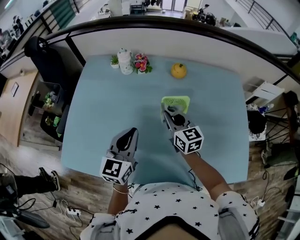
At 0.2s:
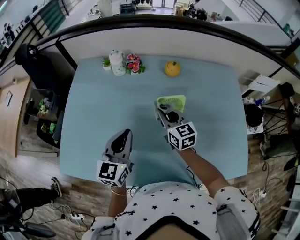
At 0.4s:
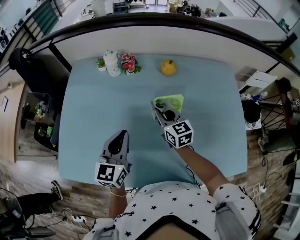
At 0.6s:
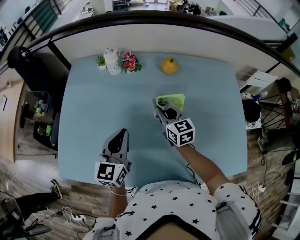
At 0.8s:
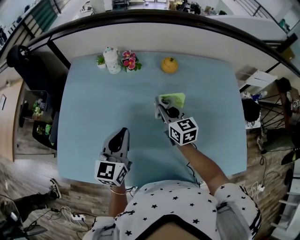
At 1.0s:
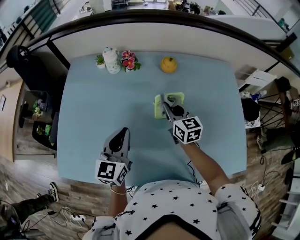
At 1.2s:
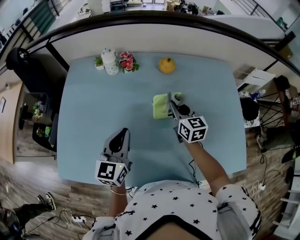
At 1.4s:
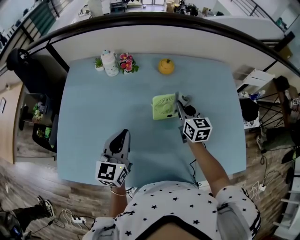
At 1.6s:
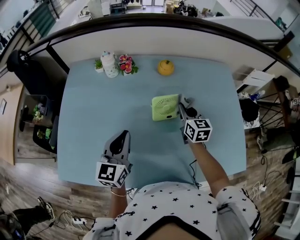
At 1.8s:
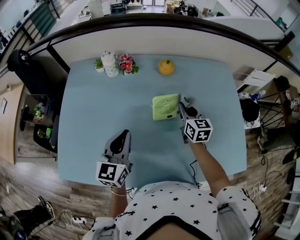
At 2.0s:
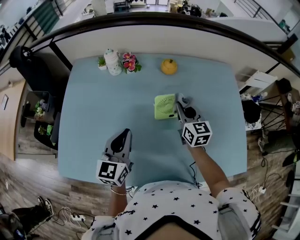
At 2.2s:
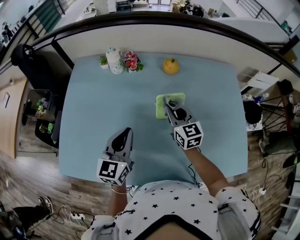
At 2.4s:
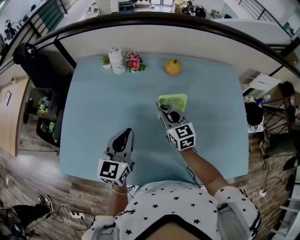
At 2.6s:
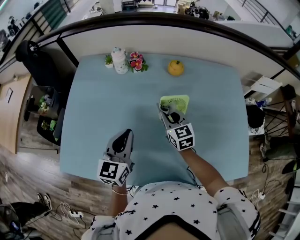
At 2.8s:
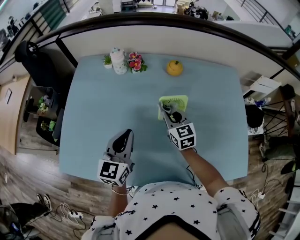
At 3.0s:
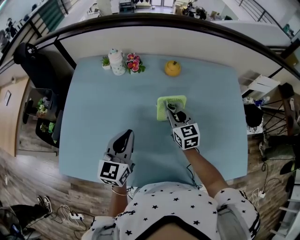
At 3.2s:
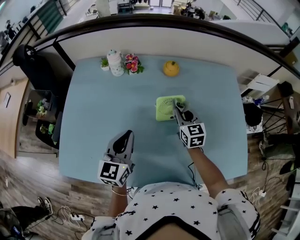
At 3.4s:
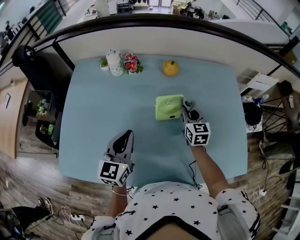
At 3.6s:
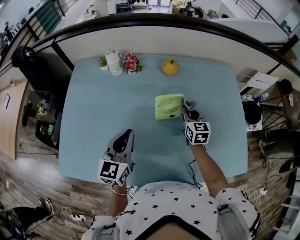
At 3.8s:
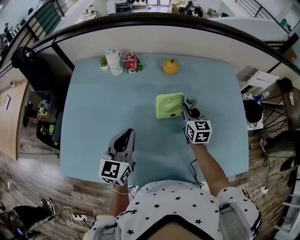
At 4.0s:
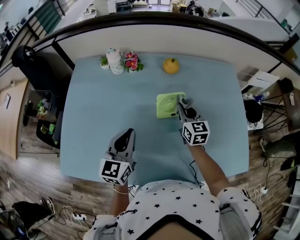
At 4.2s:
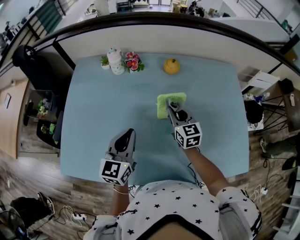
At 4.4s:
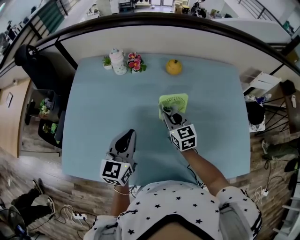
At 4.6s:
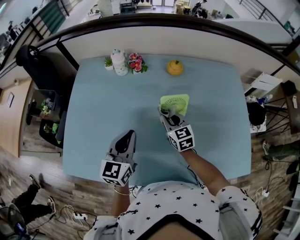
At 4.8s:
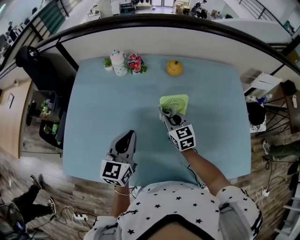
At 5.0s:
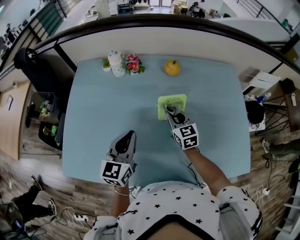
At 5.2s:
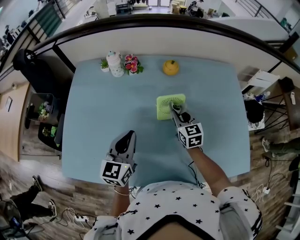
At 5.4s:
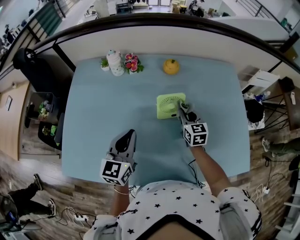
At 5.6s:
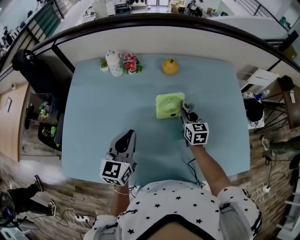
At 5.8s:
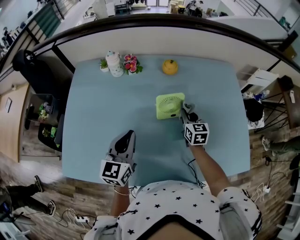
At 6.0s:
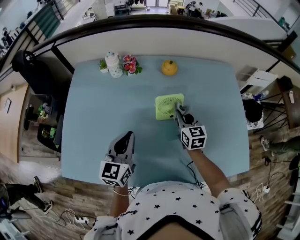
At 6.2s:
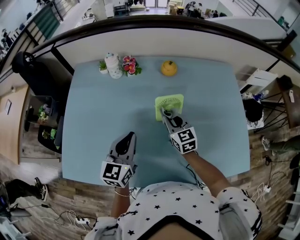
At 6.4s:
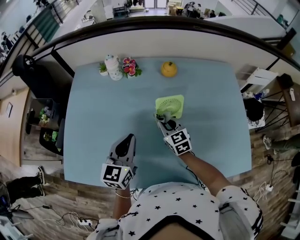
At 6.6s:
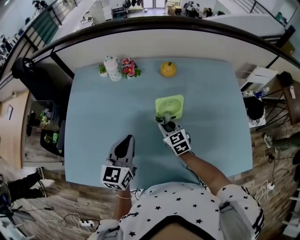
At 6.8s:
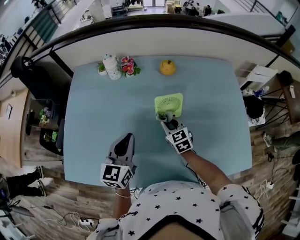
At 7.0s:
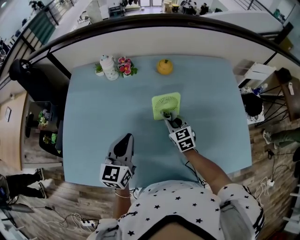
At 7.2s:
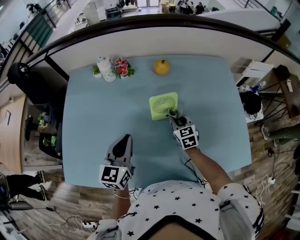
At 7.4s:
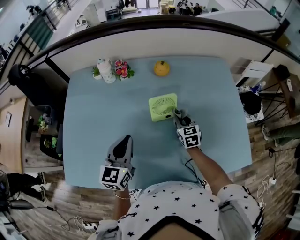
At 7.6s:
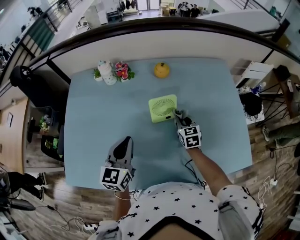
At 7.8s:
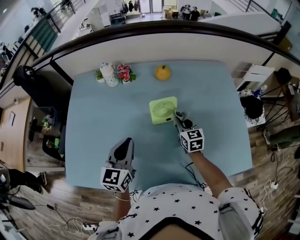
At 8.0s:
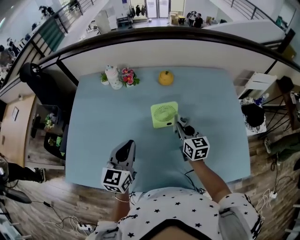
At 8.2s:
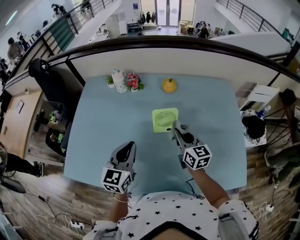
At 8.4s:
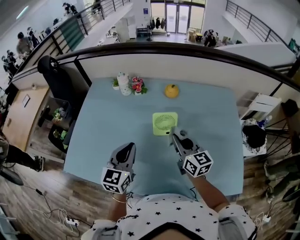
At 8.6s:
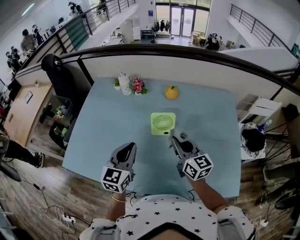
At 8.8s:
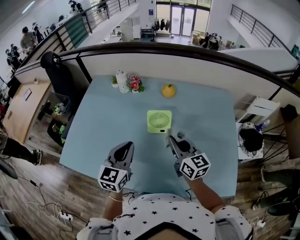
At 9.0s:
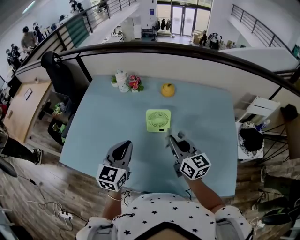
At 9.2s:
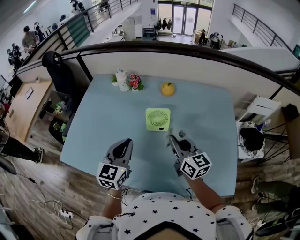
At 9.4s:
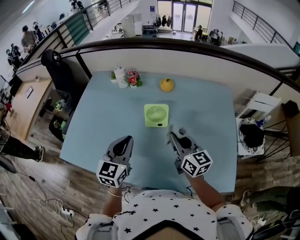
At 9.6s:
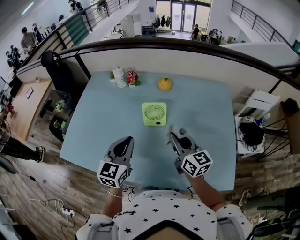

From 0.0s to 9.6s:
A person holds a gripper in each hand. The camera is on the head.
From 0.0s to 1.6s: The right gripper moves to the right, roughly 10 cm, and turns by about 20 degrees.
From 1.6s to 3.2s: The right gripper goes to the left and returns, roughly 15 cm each way.
From 3.2s to 4.8s: The right gripper heads to the left, covering about 5 cm.
From 4.8s to 6.4s: The right gripper travels to the right and back again, some 10 cm each way.
From 6.4s to 8.0s: The right gripper travels to the right by about 10 cm, and changes its angle by approximately 20 degrees.
From 8.0s to 9.6s: The left gripper moves to the right and backward, roughly 10 cm. The right gripper goes some 15 cm upward and backward, and rotates some 20 degrees.

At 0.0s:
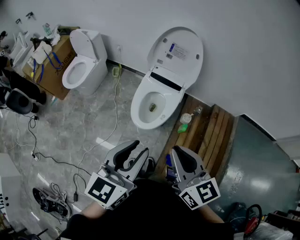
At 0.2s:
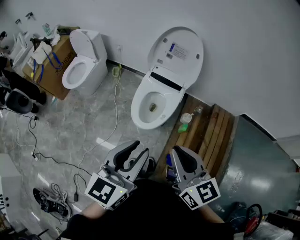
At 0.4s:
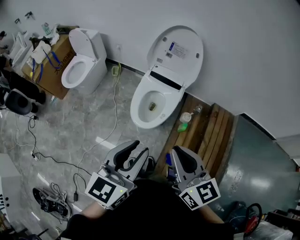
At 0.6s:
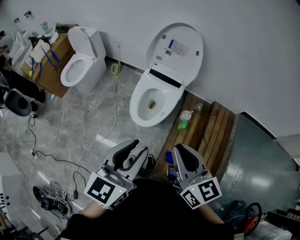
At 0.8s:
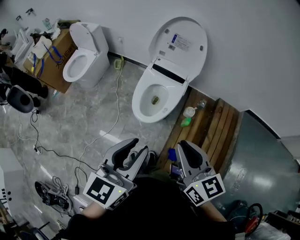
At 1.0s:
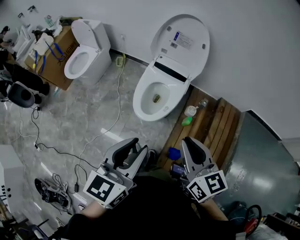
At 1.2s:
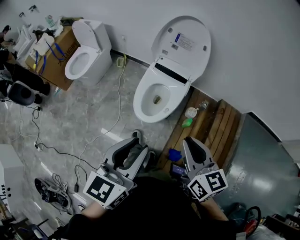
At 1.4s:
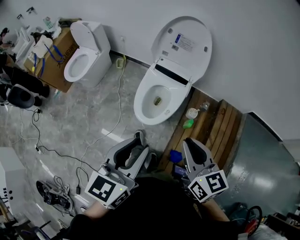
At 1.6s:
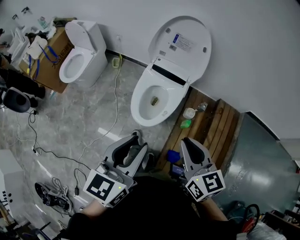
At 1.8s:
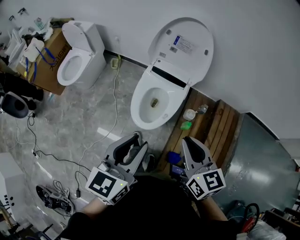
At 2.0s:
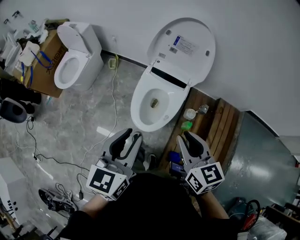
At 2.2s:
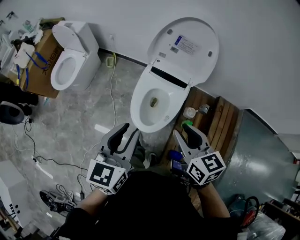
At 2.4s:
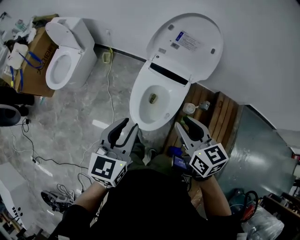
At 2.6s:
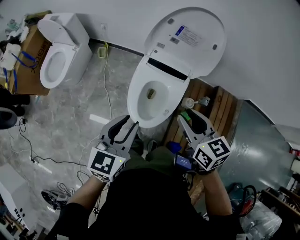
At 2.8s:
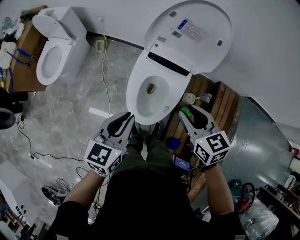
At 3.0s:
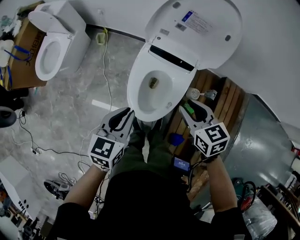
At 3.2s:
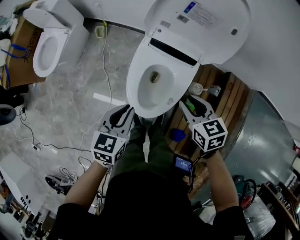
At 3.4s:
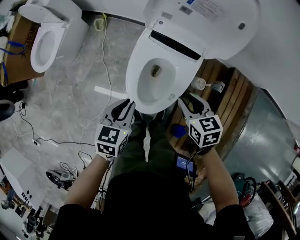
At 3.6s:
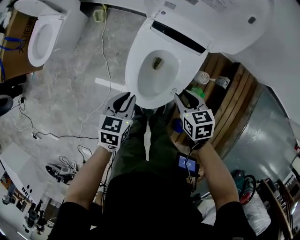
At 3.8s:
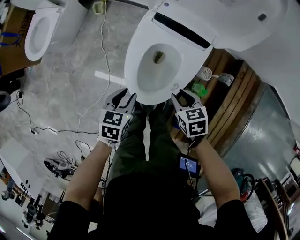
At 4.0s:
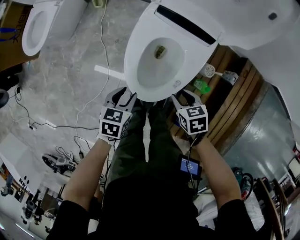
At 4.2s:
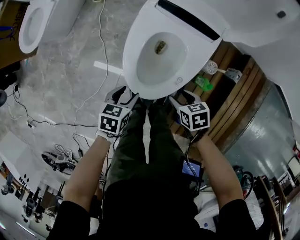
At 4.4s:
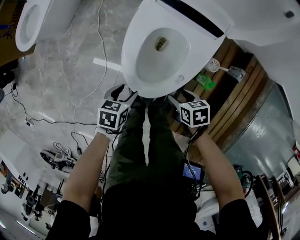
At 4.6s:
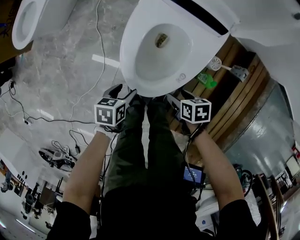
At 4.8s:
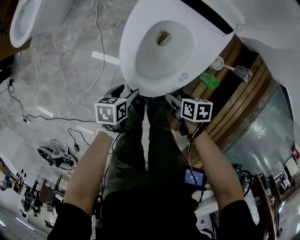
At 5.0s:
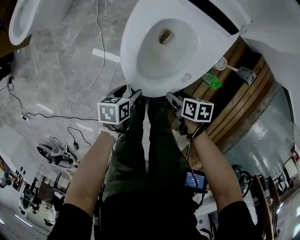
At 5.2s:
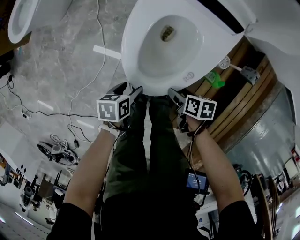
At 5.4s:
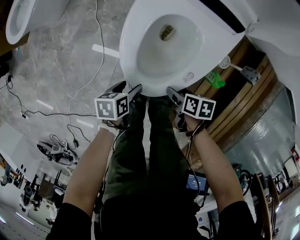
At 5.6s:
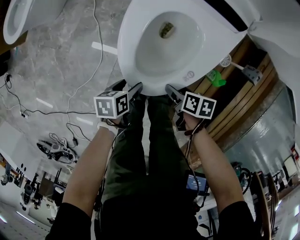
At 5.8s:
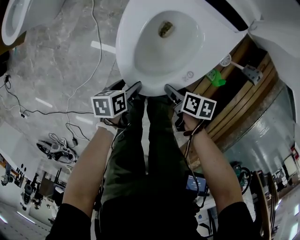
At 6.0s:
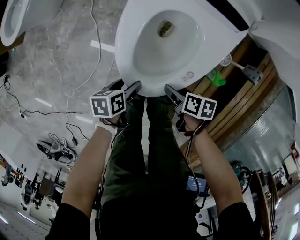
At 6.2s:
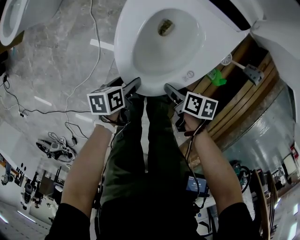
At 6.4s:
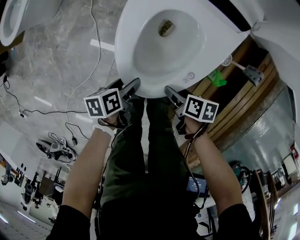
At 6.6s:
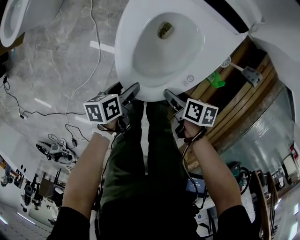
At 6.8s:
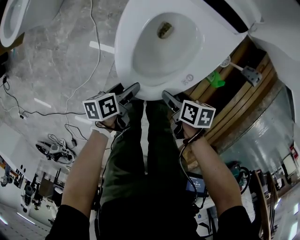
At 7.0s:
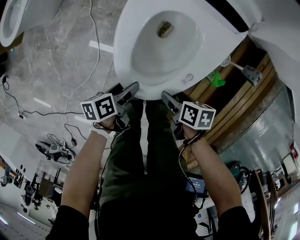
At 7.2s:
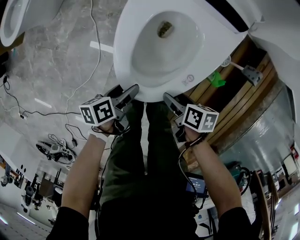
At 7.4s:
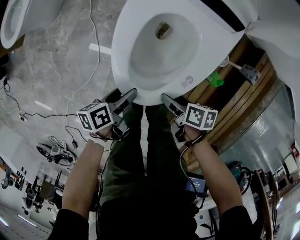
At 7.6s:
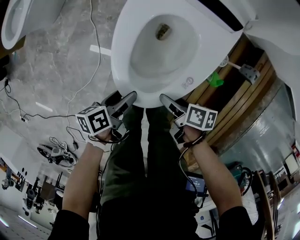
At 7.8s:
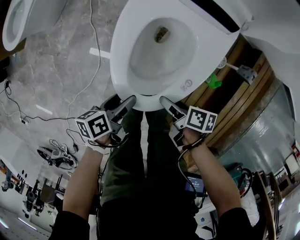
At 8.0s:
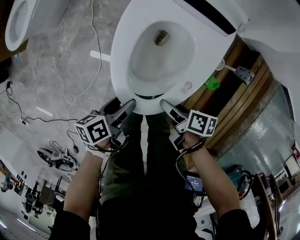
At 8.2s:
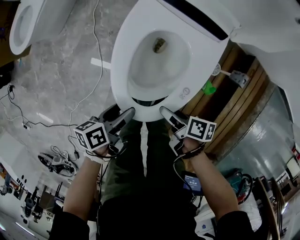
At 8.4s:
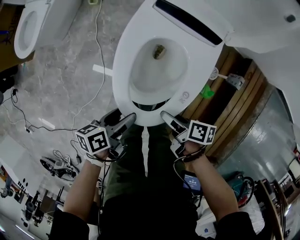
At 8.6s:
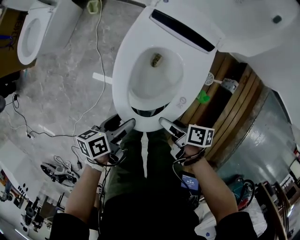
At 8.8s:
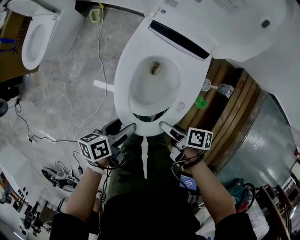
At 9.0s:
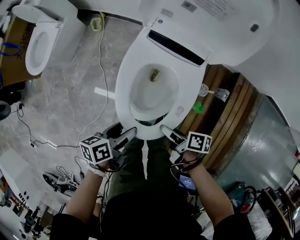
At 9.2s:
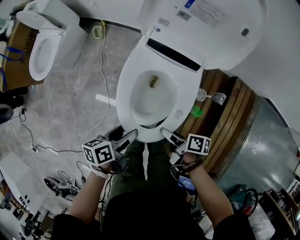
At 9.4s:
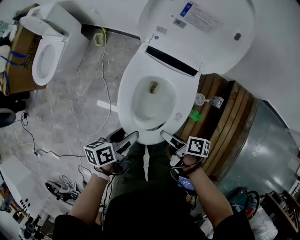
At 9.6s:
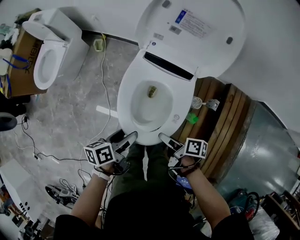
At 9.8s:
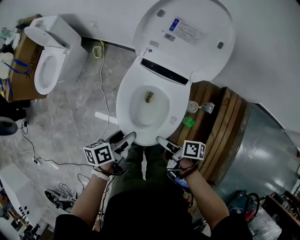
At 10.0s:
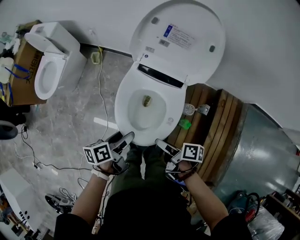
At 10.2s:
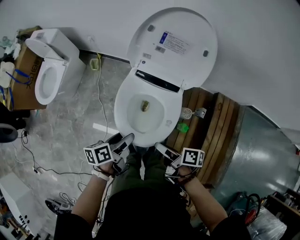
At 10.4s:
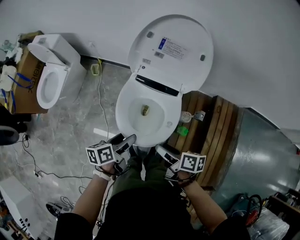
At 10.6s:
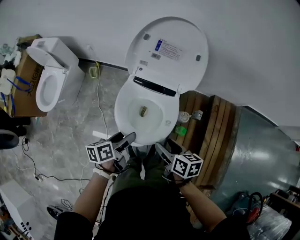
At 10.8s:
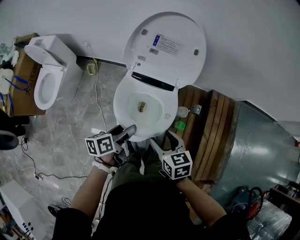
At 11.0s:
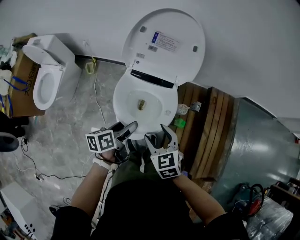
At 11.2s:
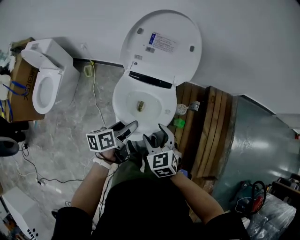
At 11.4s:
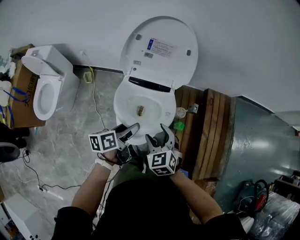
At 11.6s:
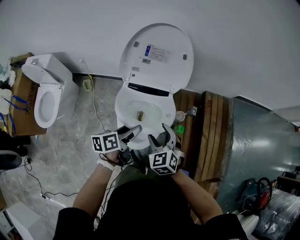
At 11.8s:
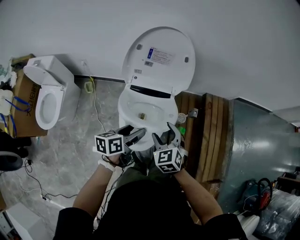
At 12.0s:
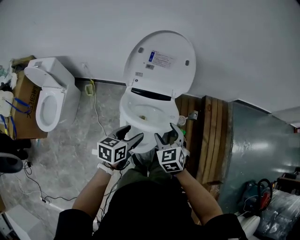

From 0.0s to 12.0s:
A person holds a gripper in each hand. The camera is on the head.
From 0.0s to 1.6s: The right gripper is displaced forward and downward by some 10 cm. Meanwhile the left gripper heads forward, covering approximately 10 cm.
From 1.6s to 3.0s: Both grippers move forward and downward, roughly 35 cm. The right gripper swivels some 20 degrees.
From 3.0s to 4.4s: The grippers both shift downward by some 35 cm. The right gripper changes its angle by about 40 degrees, and opens its fingers, while the left gripper rotates approximately 30 degrees, and opens up.
From 4.4s to 6.0s: Both grippers move downward, some 10 cm. The left gripper swivels approximately 30 degrees, while the right gripper changes its angle by approximately 30 degrees.
From 6.0s to 7.6s: Both grippers travel together upward, about 5 cm. The left gripper changes its angle by approximately 20 degrees.
From 7.6s to 9.0s: Both grippers move upward, approximately 20 cm.
From 9.0s to 10.4s: The right gripper shifts approximately 20 cm upward. The left gripper goes about 15 cm upward and forward.
From 10.4s to 12.0s: The right gripper moves about 10 cm, and rolls counterclockwise, seen from behind, by about 70 degrees; the left gripper goes approximately 5 cm upward, and rotates roughly 40 degrees.

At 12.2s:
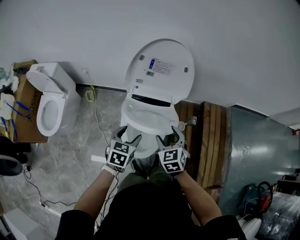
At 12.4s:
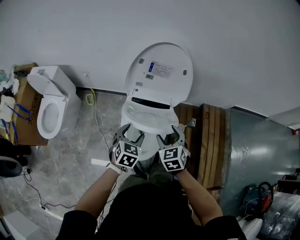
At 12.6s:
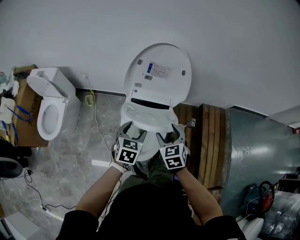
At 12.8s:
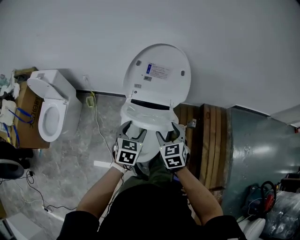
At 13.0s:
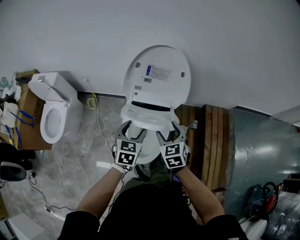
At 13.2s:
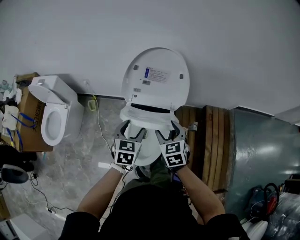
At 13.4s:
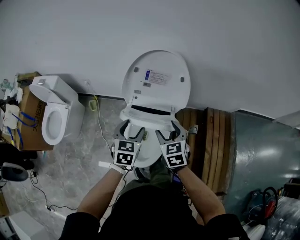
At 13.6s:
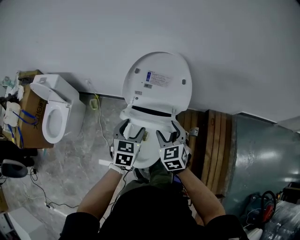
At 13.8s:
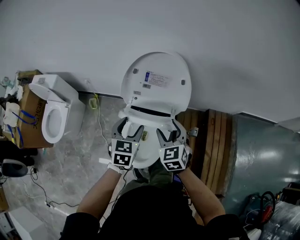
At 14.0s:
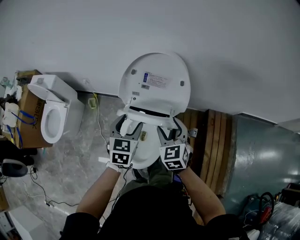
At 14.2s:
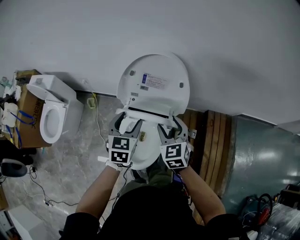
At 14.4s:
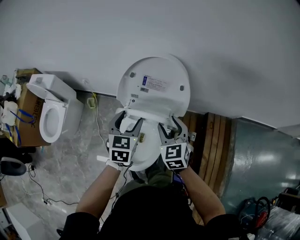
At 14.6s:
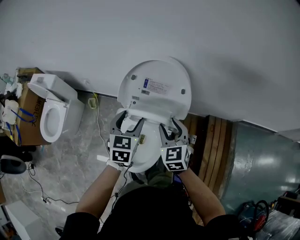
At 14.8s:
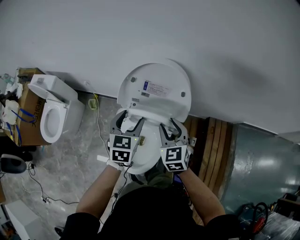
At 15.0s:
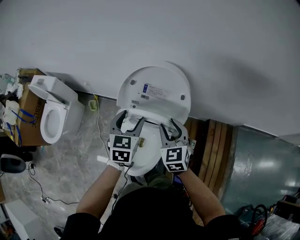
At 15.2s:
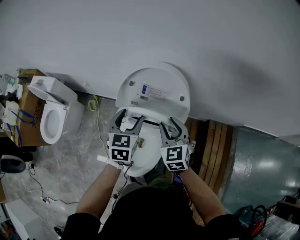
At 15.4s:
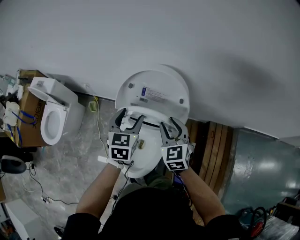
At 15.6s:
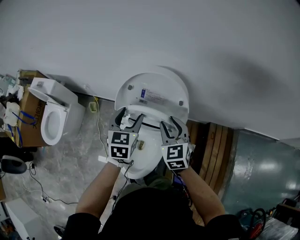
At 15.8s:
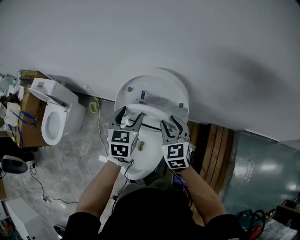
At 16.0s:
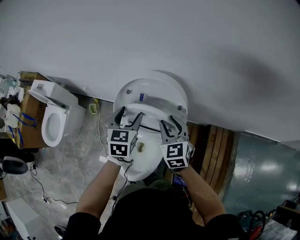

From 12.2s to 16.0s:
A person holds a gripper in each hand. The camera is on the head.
From 12.2s to 13.4s: The left gripper goes approximately 10 cm forward and upward. Meanwhile the right gripper heads forward, covering approximately 10 cm.
From 13.4s to 14.8s: The grippers both shift forward by about 10 cm.
From 14.8s to 16.0s: Both grippers travel together forward, about 10 cm.
